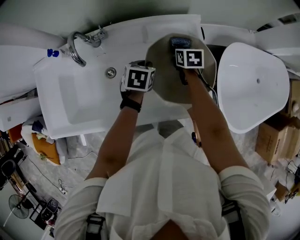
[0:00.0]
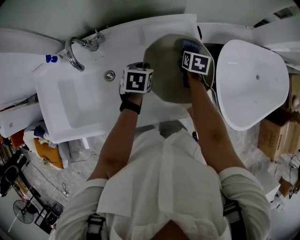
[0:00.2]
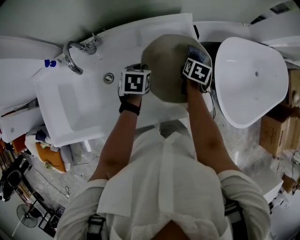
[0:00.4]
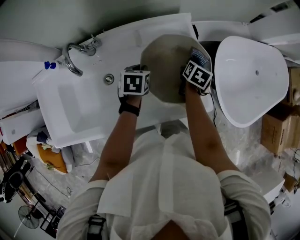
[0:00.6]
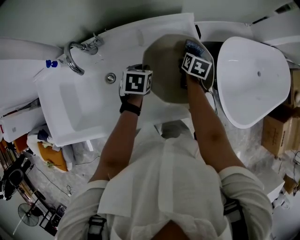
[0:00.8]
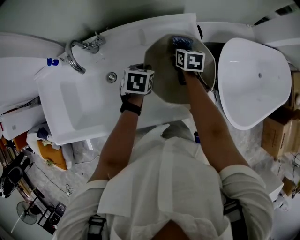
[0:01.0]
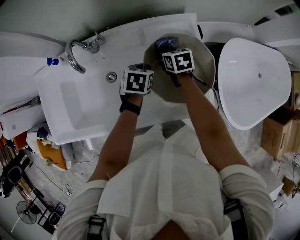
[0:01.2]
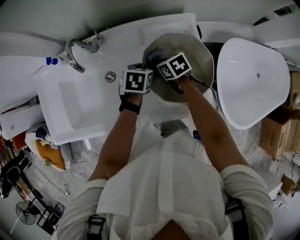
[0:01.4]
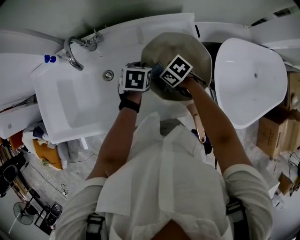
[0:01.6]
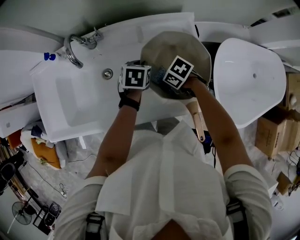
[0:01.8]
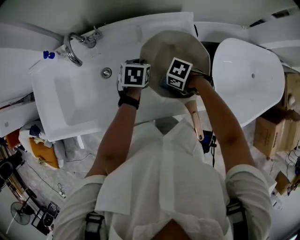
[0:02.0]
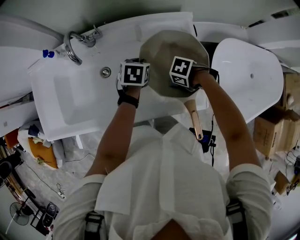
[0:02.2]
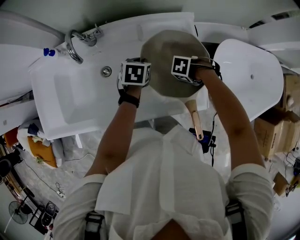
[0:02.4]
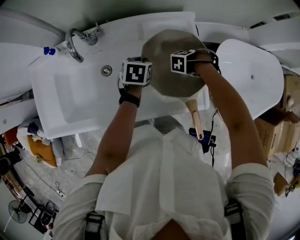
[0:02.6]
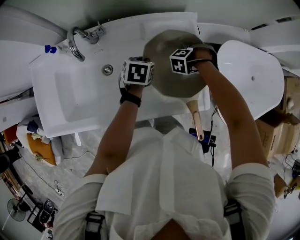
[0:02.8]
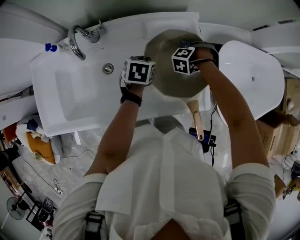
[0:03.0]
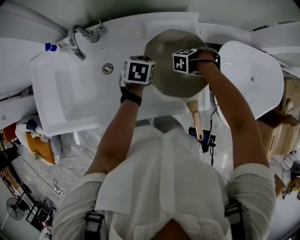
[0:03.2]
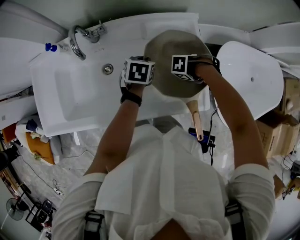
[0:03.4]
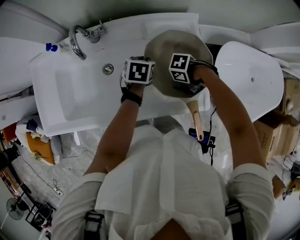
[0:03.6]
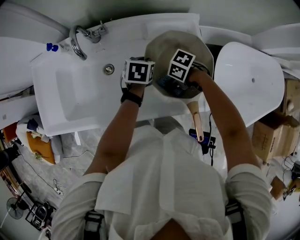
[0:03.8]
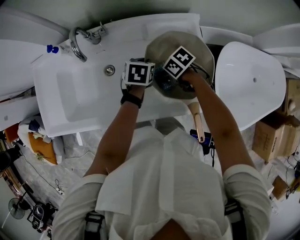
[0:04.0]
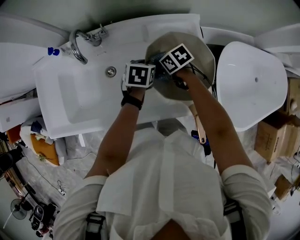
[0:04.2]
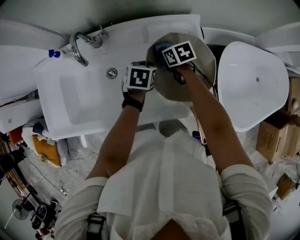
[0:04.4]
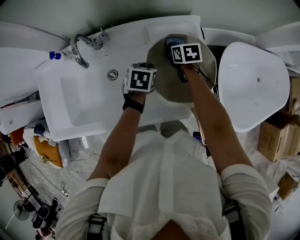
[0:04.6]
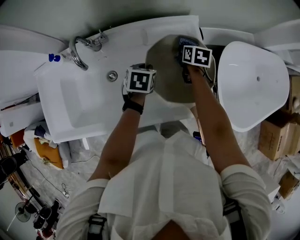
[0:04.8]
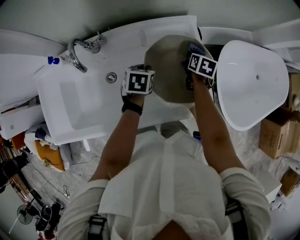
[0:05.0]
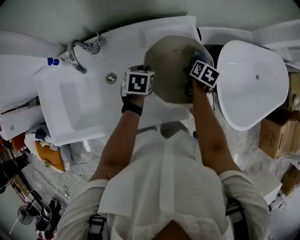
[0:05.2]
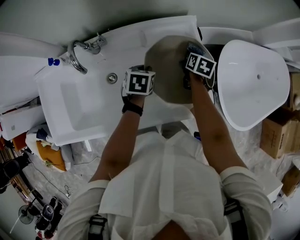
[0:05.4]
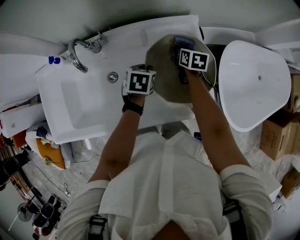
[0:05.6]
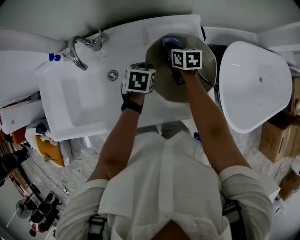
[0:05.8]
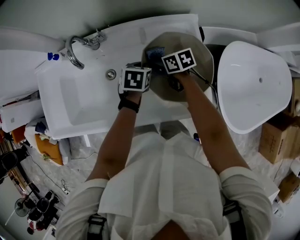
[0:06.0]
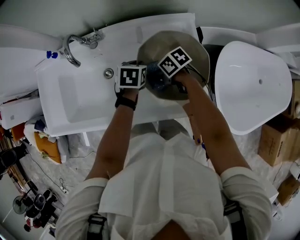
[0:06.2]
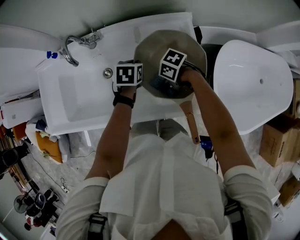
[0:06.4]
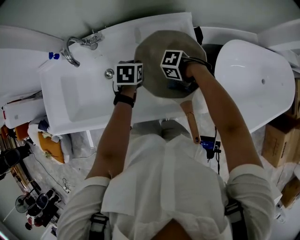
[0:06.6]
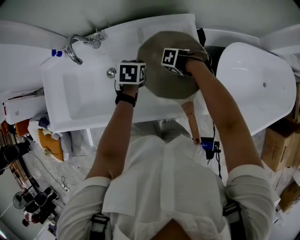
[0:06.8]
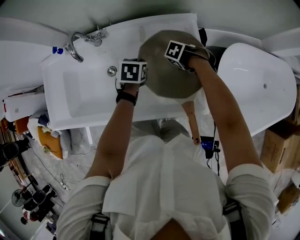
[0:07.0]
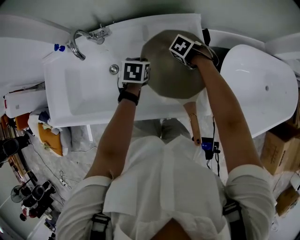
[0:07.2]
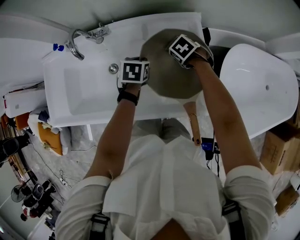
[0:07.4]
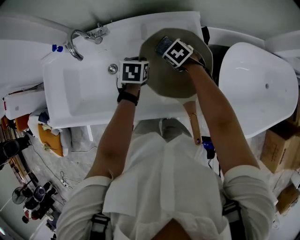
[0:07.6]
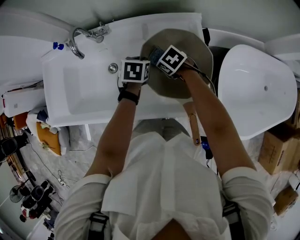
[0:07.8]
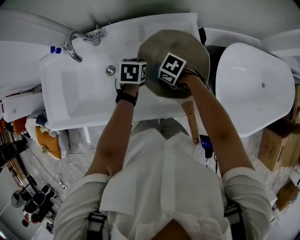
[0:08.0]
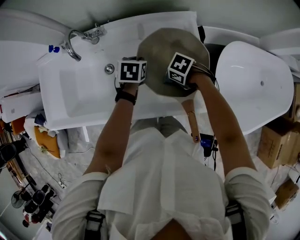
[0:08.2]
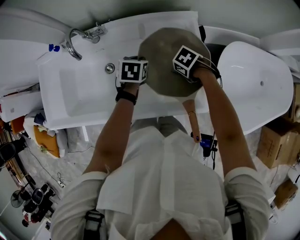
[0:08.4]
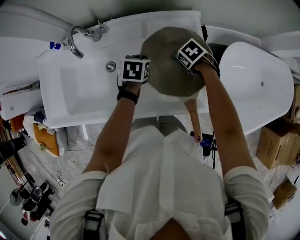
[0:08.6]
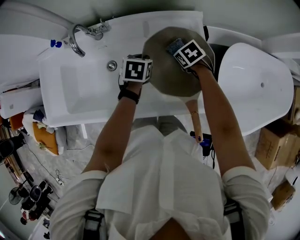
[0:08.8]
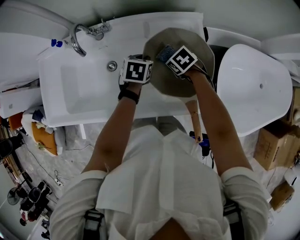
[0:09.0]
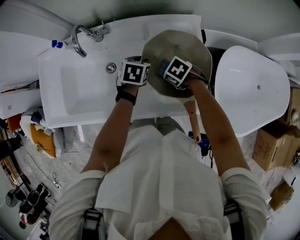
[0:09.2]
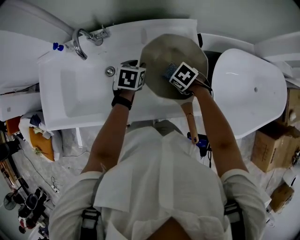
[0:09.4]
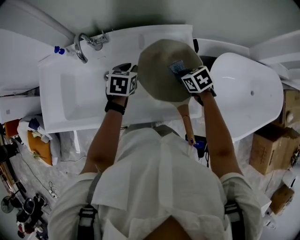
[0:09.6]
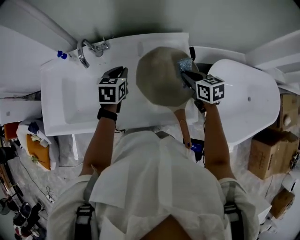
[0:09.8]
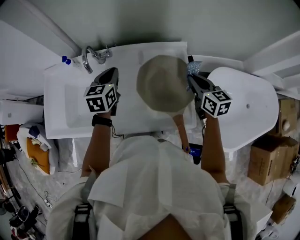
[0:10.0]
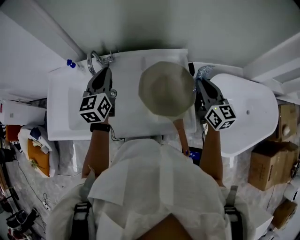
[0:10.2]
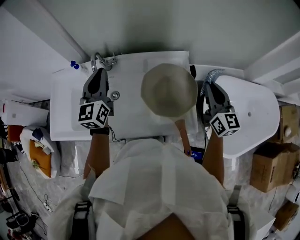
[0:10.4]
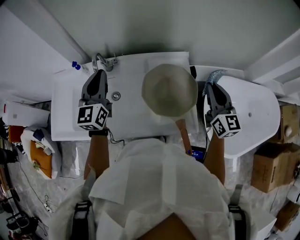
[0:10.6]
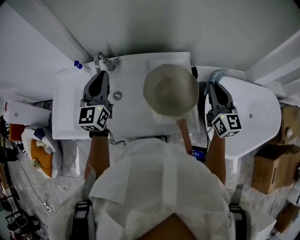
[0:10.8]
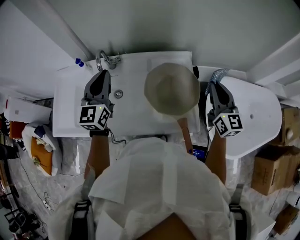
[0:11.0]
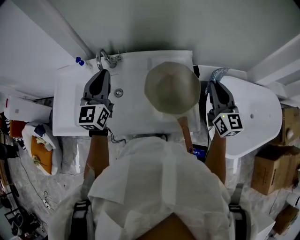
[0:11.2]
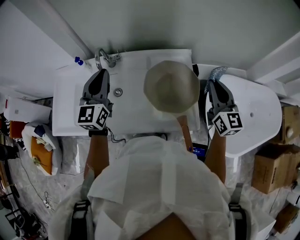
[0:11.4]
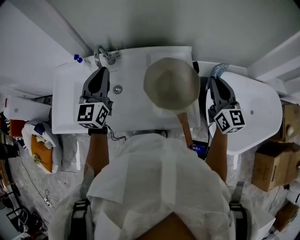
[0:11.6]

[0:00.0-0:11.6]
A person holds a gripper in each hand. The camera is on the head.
0:00.0 to 0:01.4: The right gripper moves about 10 cm, and changes its angle by roughly 30 degrees.
0:01.4 to 0:02.8: The right gripper ends up about 20 cm from where it was, and turns by approximately 90 degrees.
0:02.8 to 0:04.4: The right gripper changes place by some 15 cm, and rotates roughly 90 degrees.
0:04.4 to 0:05.8: The right gripper swivels some 20 degrees.
0:05.8 to 0:07.2: The right gripper points its fingers some 50 degrees further downward.
0:07.2 to 0:08.8: The right gripper swivels about 30 degrees.
0:08.8 to 0:10.2: Both grippers move upward, roughly 25 cm. The right gripper tilts its fingers about 60 degrees upward. Meanwhile the left gripper tilts its fingers about 50 degrees upward.
0:10.2 to 0:11.6: The right gripper ends up some 5 cm from where it was. The left gripper heads backward and upward, covering approximately 5 cm.

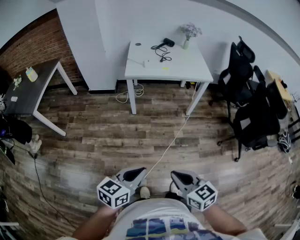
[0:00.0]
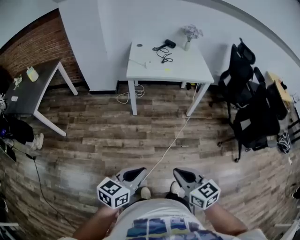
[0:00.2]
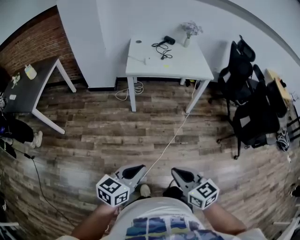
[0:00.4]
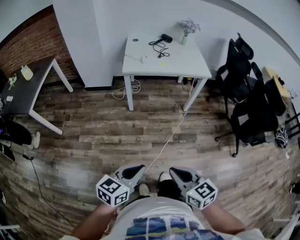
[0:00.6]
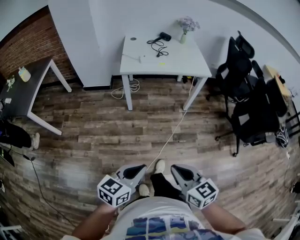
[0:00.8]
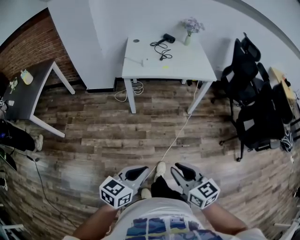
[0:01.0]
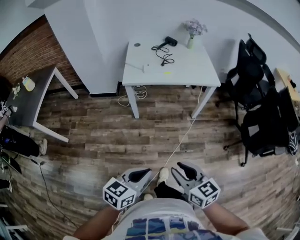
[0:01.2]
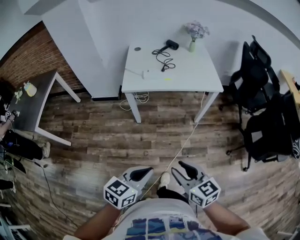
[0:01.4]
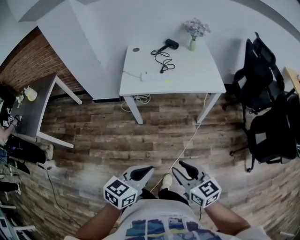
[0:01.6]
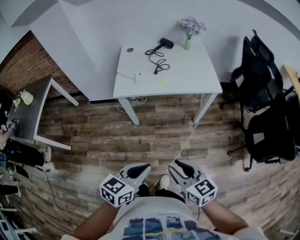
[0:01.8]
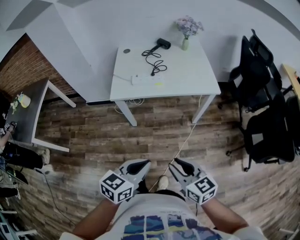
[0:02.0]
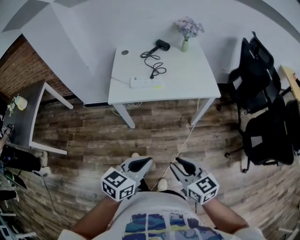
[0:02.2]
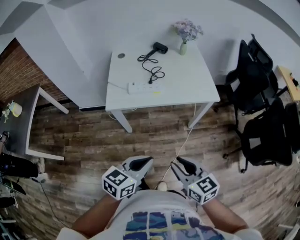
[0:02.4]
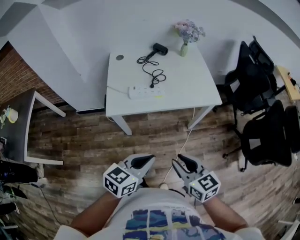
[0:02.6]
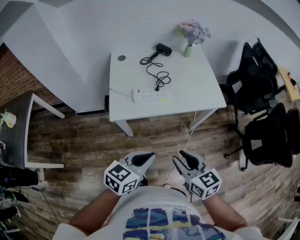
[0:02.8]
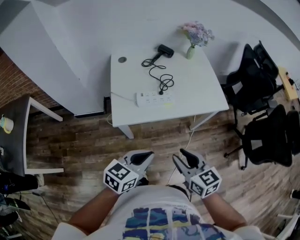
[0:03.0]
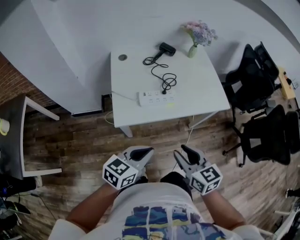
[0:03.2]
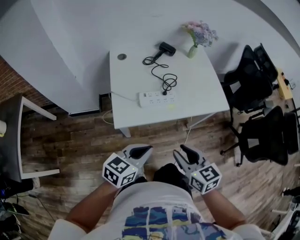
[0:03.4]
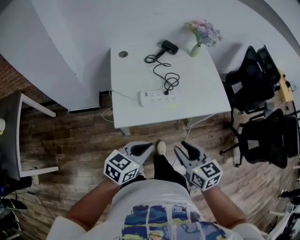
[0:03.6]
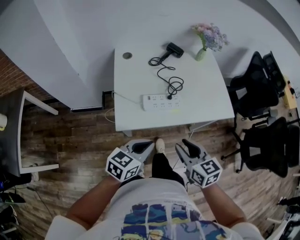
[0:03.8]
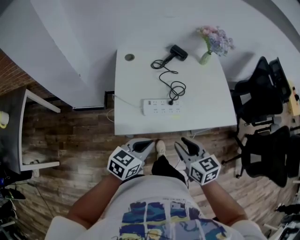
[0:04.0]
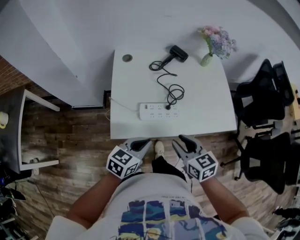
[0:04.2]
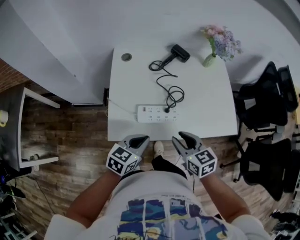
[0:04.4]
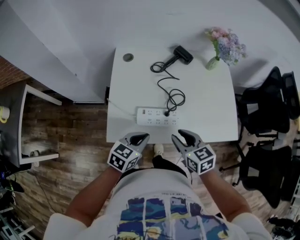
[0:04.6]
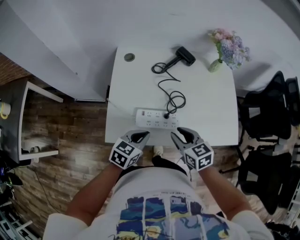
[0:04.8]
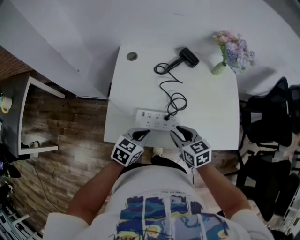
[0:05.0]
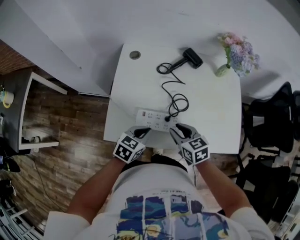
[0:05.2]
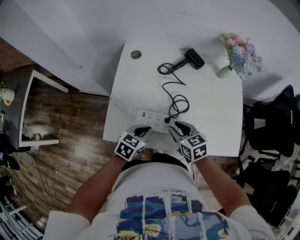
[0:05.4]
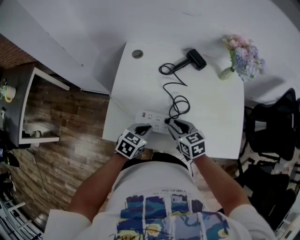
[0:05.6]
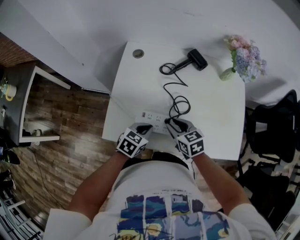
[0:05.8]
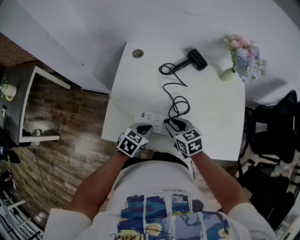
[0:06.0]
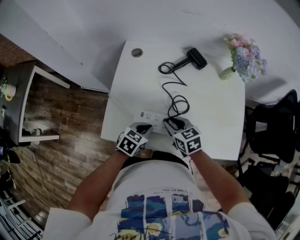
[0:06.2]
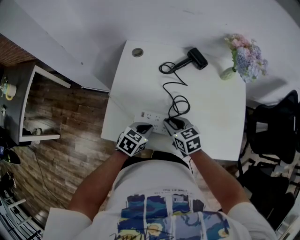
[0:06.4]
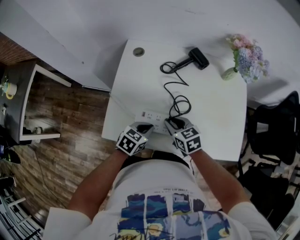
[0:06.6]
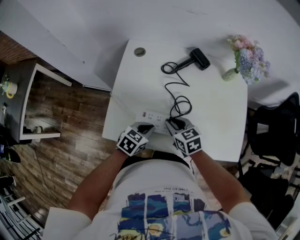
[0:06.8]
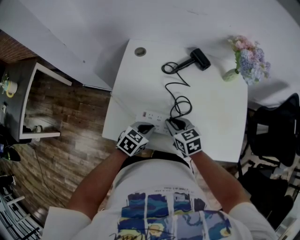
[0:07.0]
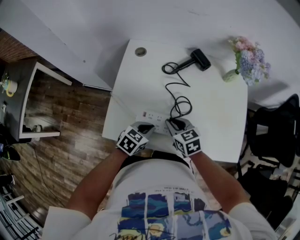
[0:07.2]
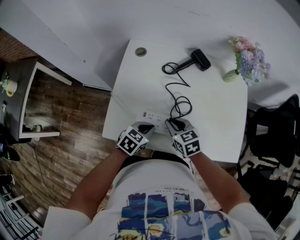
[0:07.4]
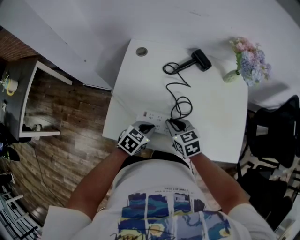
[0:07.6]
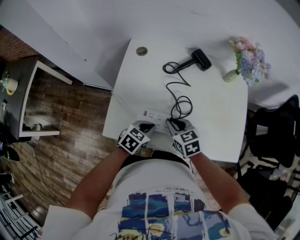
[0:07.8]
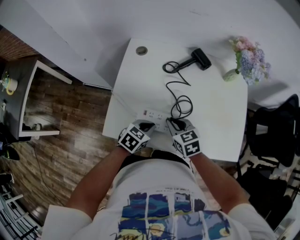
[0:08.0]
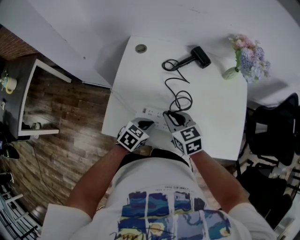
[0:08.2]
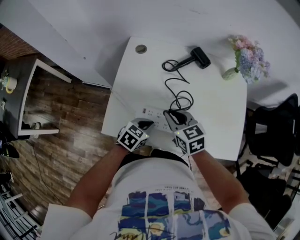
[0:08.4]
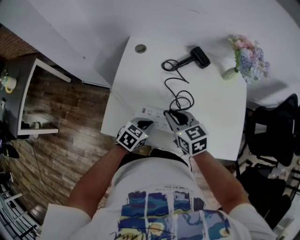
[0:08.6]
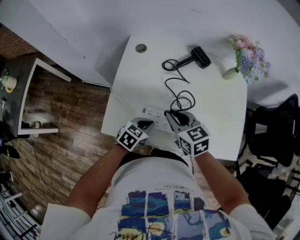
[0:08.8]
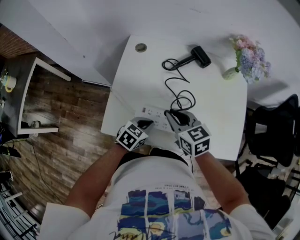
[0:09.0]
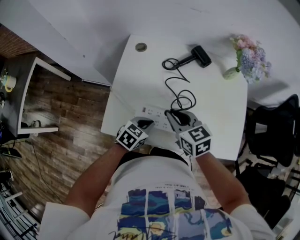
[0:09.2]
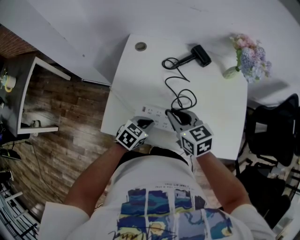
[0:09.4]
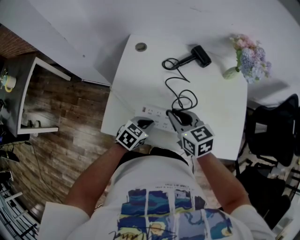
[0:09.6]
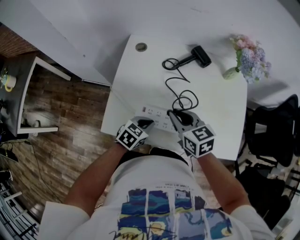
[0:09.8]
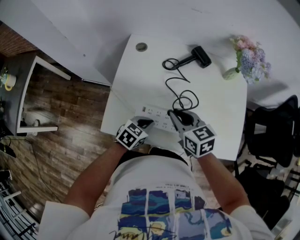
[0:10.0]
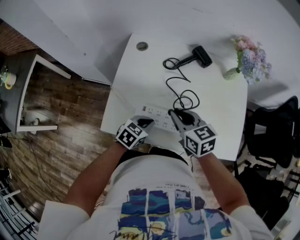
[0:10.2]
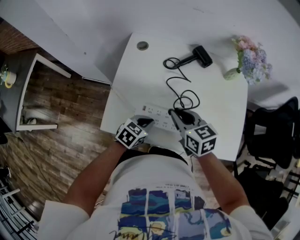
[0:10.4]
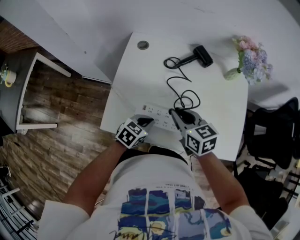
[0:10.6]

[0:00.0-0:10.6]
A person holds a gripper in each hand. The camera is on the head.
0:00.0 to 0:01.6: The grippers both shift forward by approximately 25 cm. The right gripper opens.
0:01.6 to 0:03.0: Both grippers travel together forward and to the left, about 30 cm.
0:03.0 to 0:04.6: The left gripper is displaced forward and downward by roughly 25 cm. The right gripper travels forward by roughly 25 cm.
0:04.6 to 0:06.0: The left gripper heads downward and forward, covering roughly 10 cm, while the right gripper travels forward and downward by some 15 cm.
0:06.0 to 0:07.6: The two grippers keep their place.
0:07.6 to 0:09.0: The right gripper is displaced upward by approximately 10 cm.
0:09.0 to 0:10.6: The grippers stay close to where they were, moving slightly.

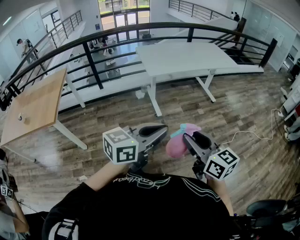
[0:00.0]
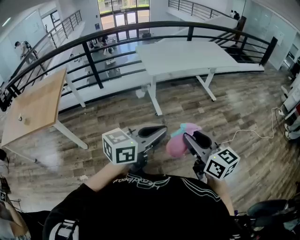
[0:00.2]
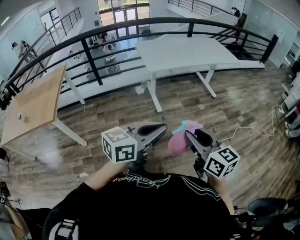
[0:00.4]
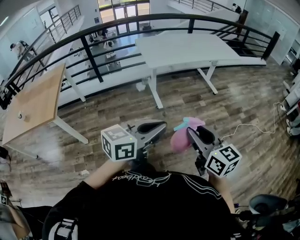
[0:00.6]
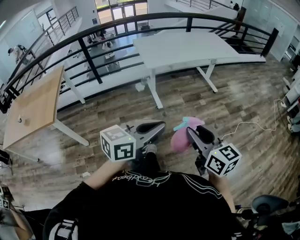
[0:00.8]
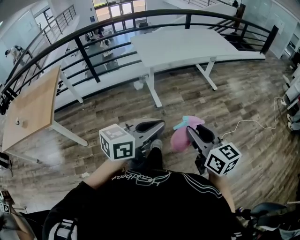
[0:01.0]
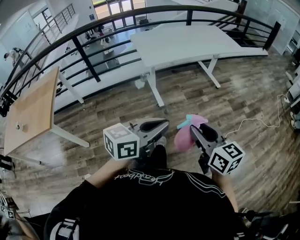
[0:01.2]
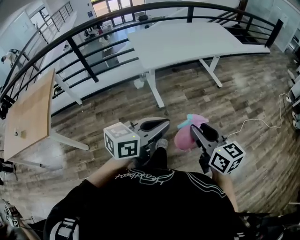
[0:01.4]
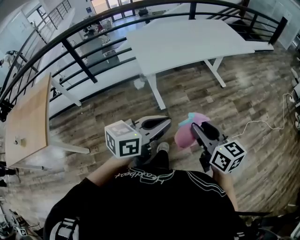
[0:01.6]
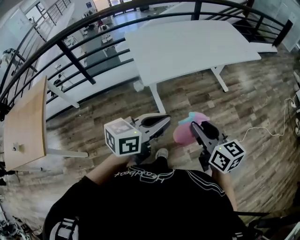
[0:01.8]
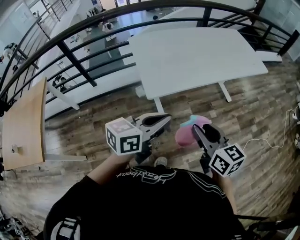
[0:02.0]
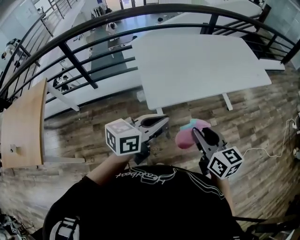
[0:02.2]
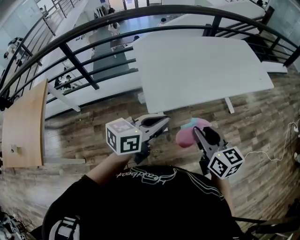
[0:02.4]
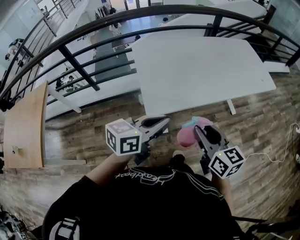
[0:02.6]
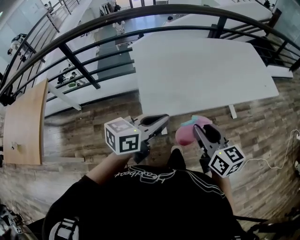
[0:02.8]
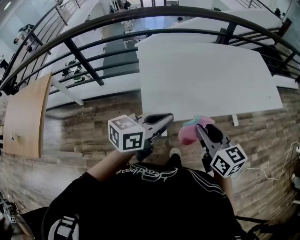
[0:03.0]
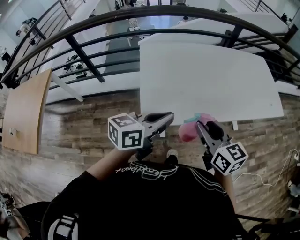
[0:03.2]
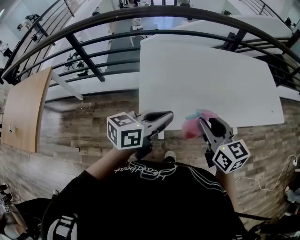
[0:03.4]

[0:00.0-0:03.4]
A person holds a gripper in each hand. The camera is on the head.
0:00.0 to 0:01.6: Both grippers travel together forward, approximately 30 cm.
0:01.6 to 0:03.4: The two grippers travel together, forward, roughly 50 cm.
